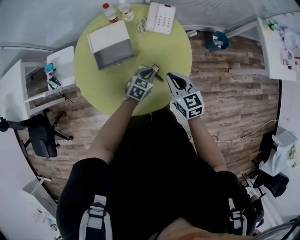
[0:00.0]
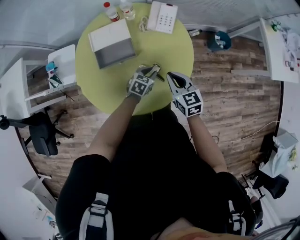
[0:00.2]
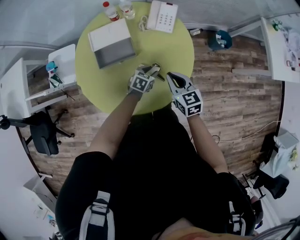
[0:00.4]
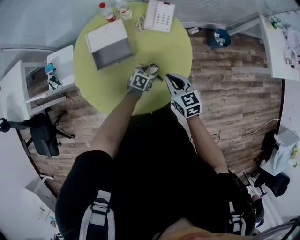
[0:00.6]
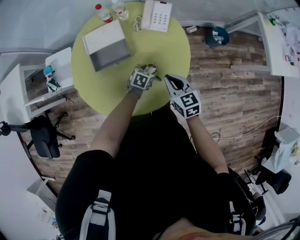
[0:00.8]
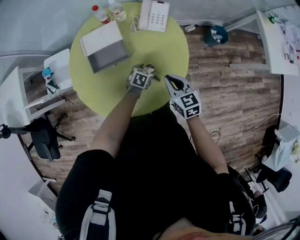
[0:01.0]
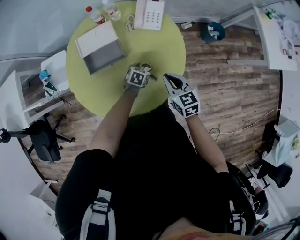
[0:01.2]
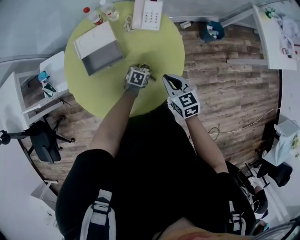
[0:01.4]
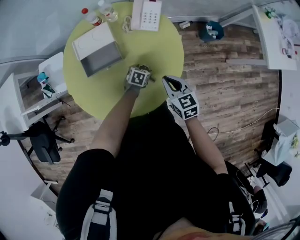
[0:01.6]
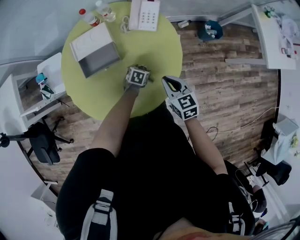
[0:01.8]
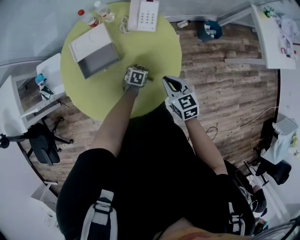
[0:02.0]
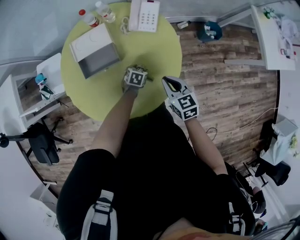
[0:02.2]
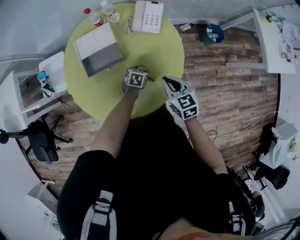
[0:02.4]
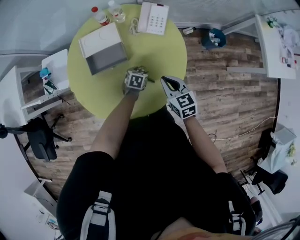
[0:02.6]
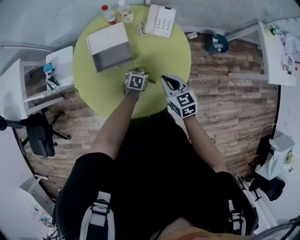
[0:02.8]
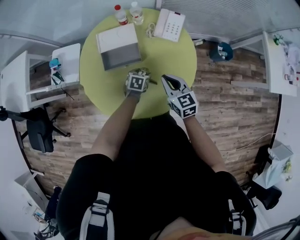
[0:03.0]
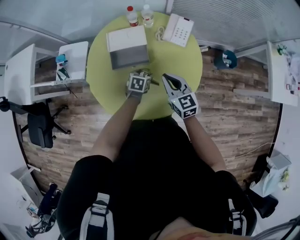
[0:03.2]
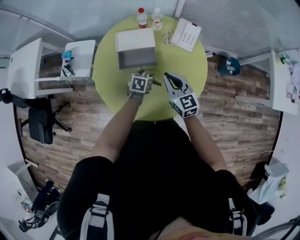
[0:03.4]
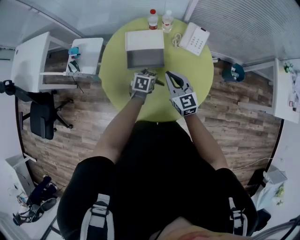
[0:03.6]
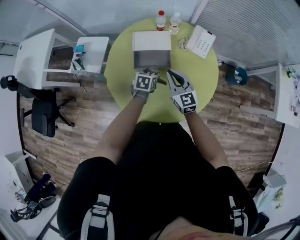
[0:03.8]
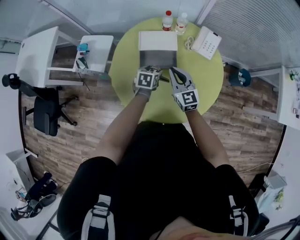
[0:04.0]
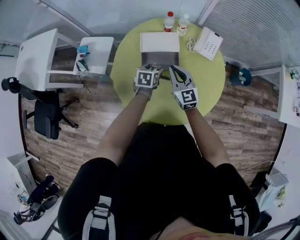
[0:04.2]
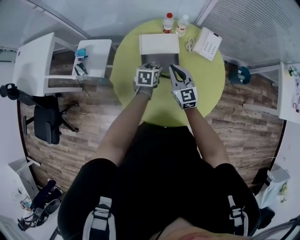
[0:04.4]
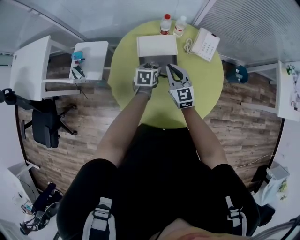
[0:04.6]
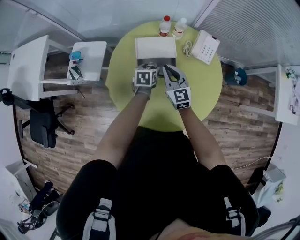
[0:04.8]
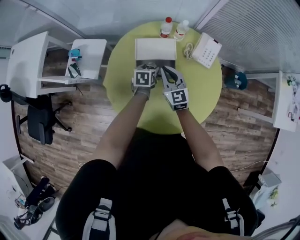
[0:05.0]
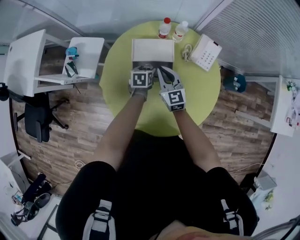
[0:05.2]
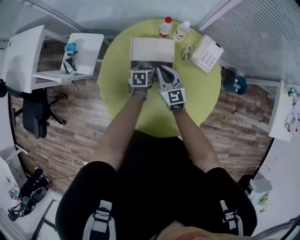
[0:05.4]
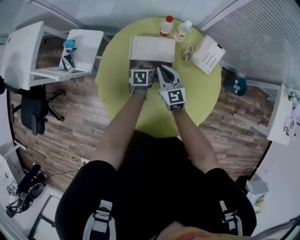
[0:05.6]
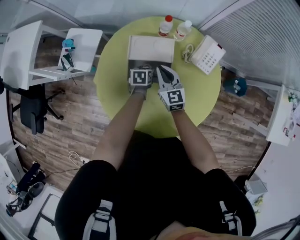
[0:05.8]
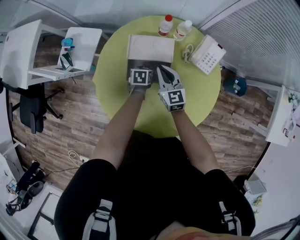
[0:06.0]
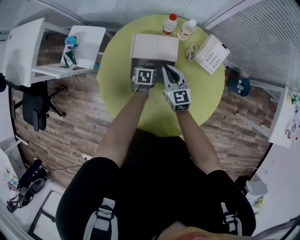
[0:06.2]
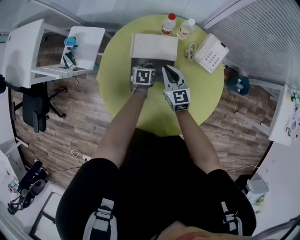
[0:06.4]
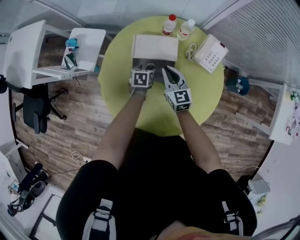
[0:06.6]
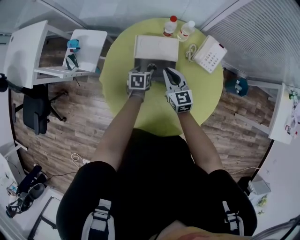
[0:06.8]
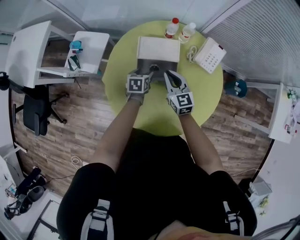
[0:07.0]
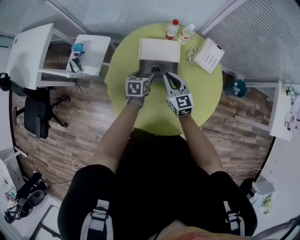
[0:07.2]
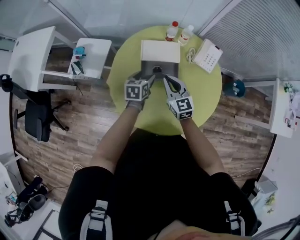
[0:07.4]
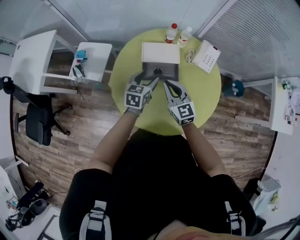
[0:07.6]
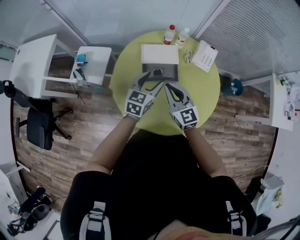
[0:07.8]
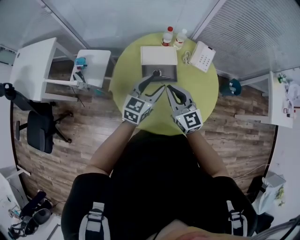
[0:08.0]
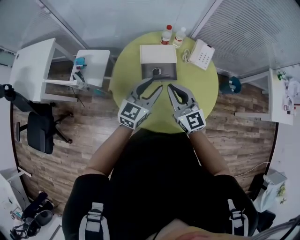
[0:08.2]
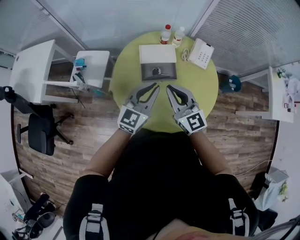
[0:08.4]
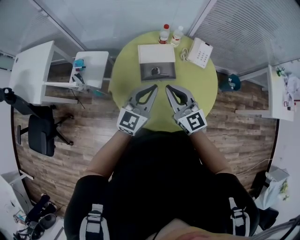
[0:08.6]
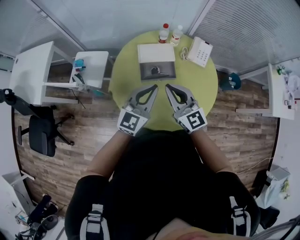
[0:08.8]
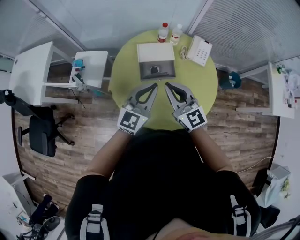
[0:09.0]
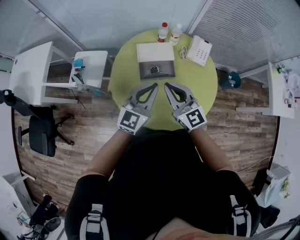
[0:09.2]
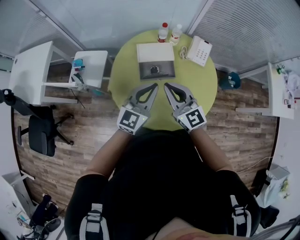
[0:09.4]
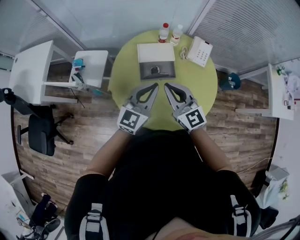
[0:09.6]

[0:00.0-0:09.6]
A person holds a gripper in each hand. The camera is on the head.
0:00.0 to 0:01.6: The left gripper heads downward, covering about 15 cm, rotates about 20 degrees, and opens up. The right gripper is displaced downward by approximately 5 cm.
0:01.6 to 0:03.2: Both grippers travel together to the left and upward, roughly 15 cm.
0:03.2 to 0:04.8: The two grippers go approximately 20 cm to the left and forward.
0:04.8 to 0:06.4: The right gripper is displaced downward and forward by about 10 cm; the left gripper is displaced downward by roughly 10 cm.
0:06.4 to 0:08.0: Both grippers move upward and backward, some 30 cm. The left gripper tips its fingers upward by approximately 40 degrees.
0:08.0 to 0:09.6: The left gripper shifts roughly 5 cm upward, and closes its fingers.

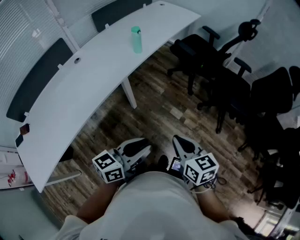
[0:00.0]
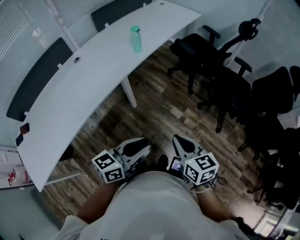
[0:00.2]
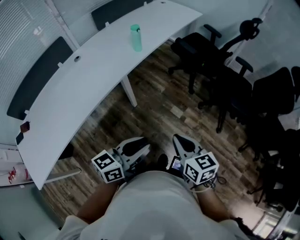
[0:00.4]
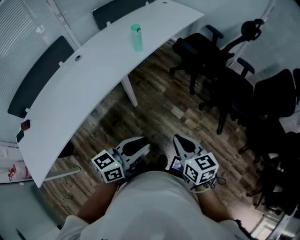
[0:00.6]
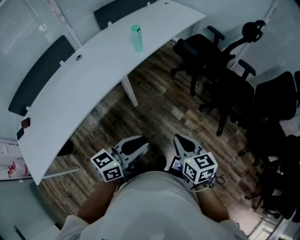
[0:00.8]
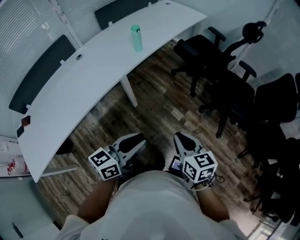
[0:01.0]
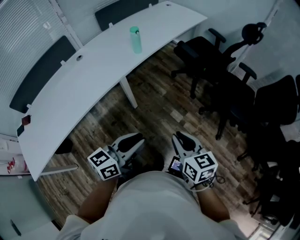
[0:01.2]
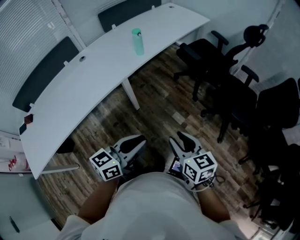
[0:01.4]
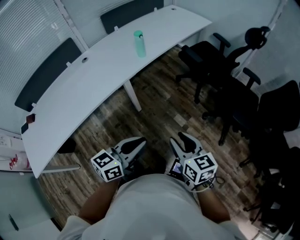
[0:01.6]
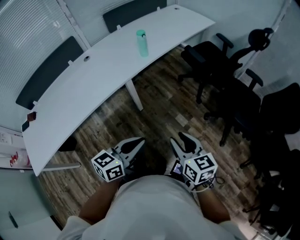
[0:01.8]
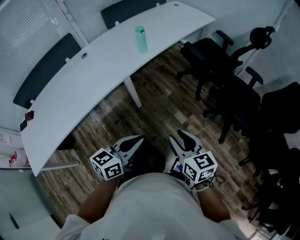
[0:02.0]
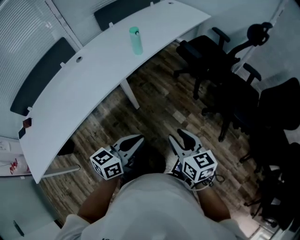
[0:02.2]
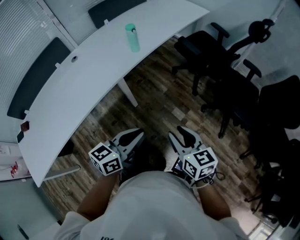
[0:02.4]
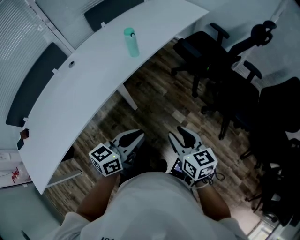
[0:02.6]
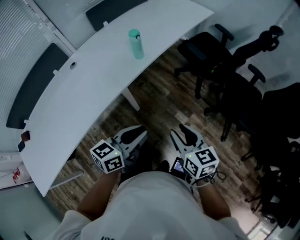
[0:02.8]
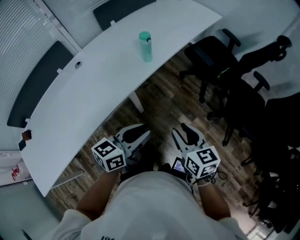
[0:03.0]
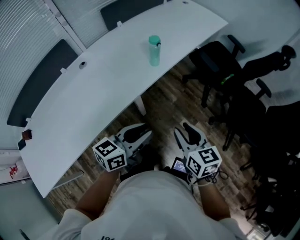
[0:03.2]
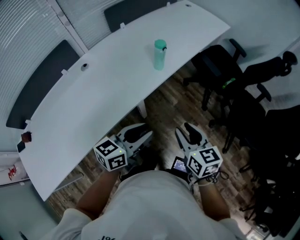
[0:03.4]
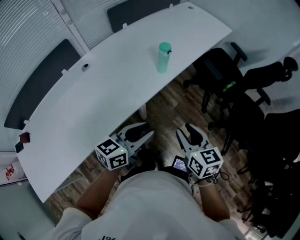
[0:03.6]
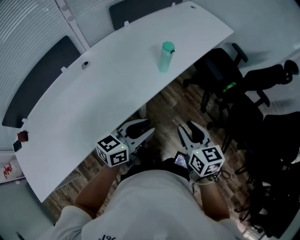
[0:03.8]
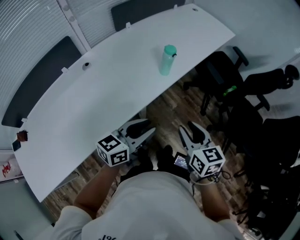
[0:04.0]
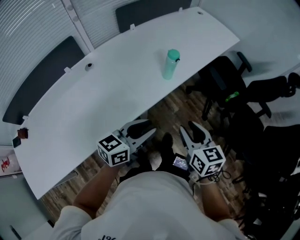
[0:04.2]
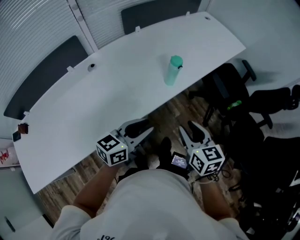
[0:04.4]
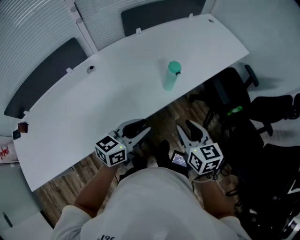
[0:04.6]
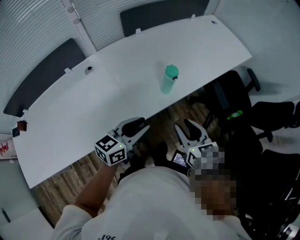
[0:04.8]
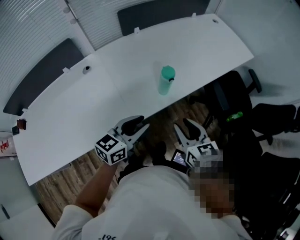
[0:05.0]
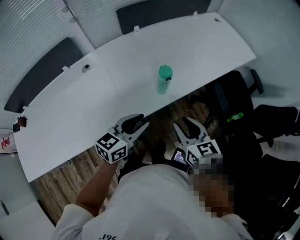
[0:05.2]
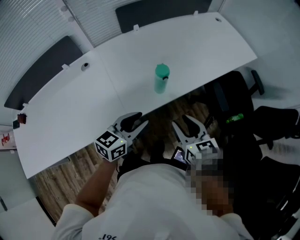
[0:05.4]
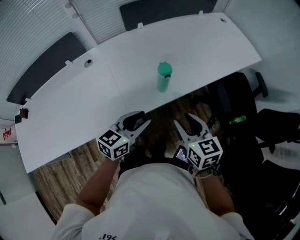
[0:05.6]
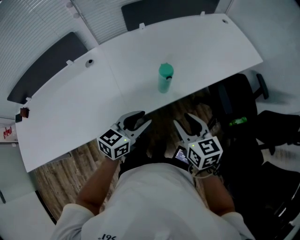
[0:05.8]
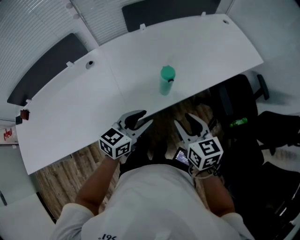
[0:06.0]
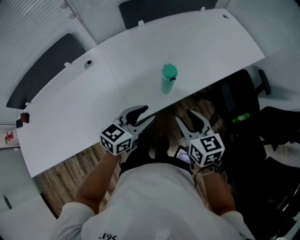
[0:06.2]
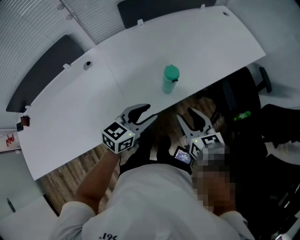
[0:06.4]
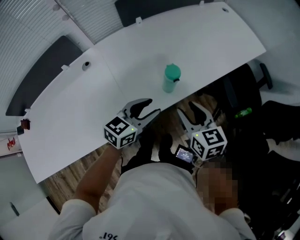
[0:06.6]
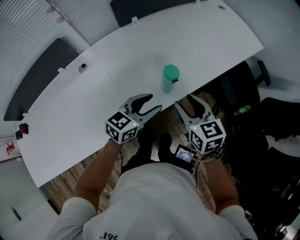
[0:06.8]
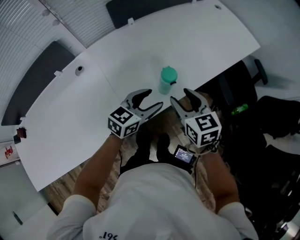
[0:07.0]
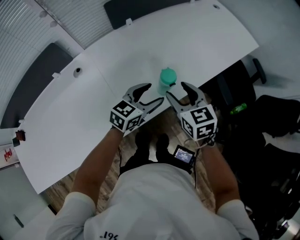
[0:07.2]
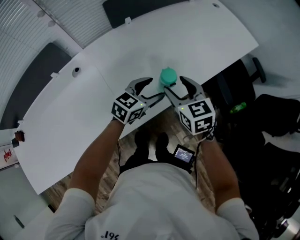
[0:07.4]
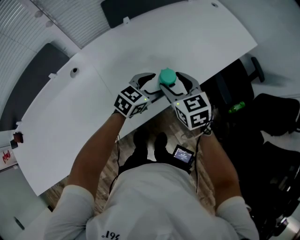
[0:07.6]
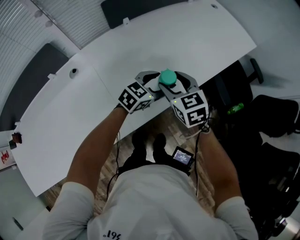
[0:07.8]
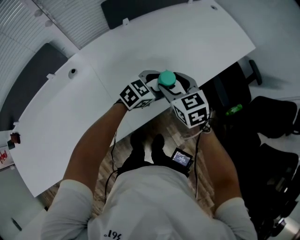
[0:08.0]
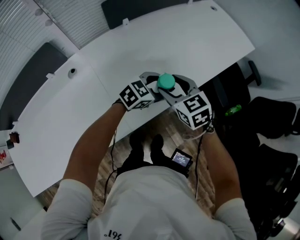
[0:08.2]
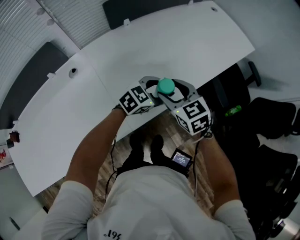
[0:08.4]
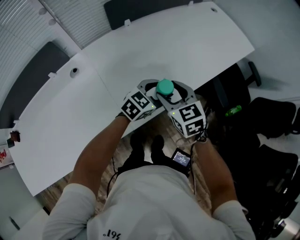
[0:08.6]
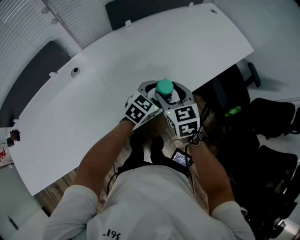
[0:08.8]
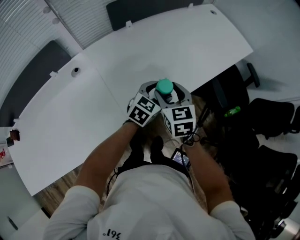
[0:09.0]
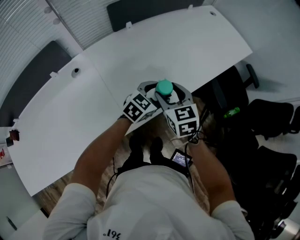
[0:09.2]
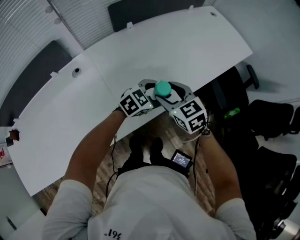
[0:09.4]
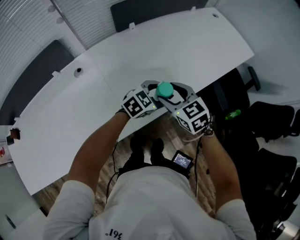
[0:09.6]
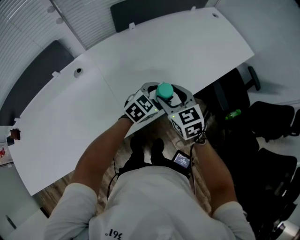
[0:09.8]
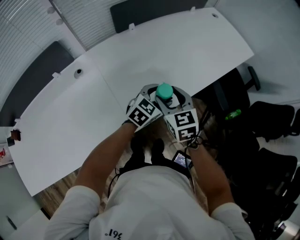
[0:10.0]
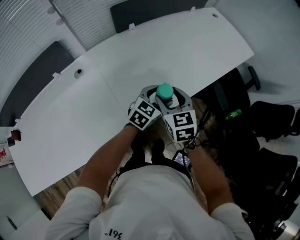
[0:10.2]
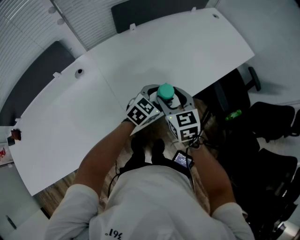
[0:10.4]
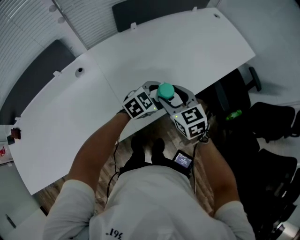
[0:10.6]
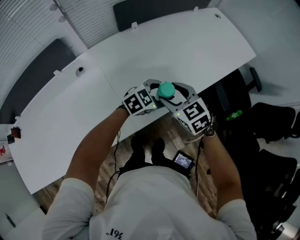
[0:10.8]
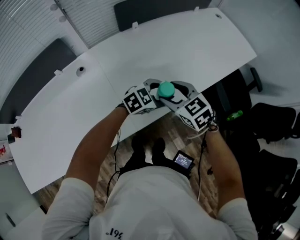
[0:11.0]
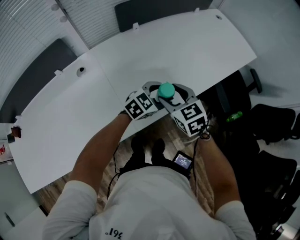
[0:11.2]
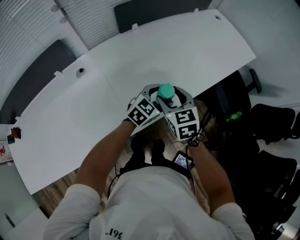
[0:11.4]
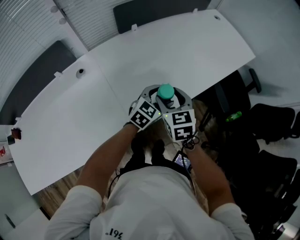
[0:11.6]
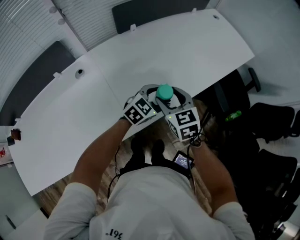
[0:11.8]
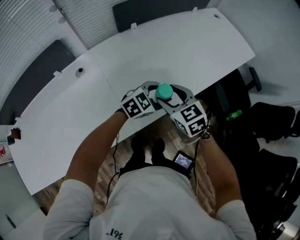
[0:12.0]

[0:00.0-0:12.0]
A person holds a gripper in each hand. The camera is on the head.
0:00.0 to 0:01.6: The grippers both shift to the right by some 5 cm. The right gripper opens up.
0:01.6 to 0:03.0: Both grippers move forward and to the left, about 20 cm.
0:03.0 to 0:04.4: The grippers both shift forward and to the left by about 15 cm.
0:04.4 to 0:06.0: The left gripper moves forward and to the right, about 15 cm; the right gripper shifts some 10 cm forward.
0:06.0 to 0:07.6: The left gripper travels forward by about 15 cm, turns by approximately 20 degrees, and opens its fingers. The right gripper moves forward and to the left, approximately 15 cm.
0:07.6 to 0:09.0: There are only small adjustments of the grippers.

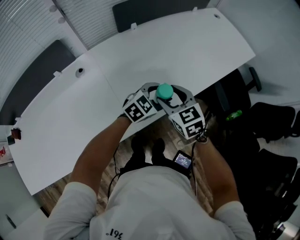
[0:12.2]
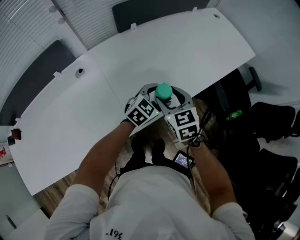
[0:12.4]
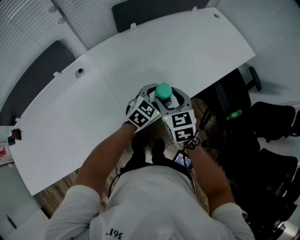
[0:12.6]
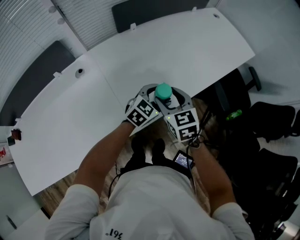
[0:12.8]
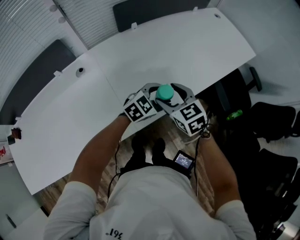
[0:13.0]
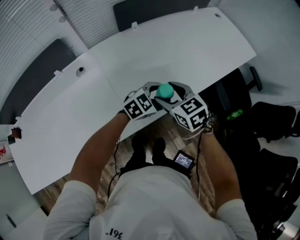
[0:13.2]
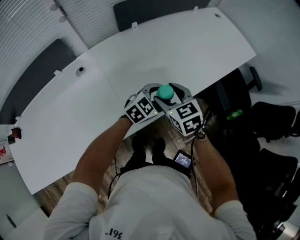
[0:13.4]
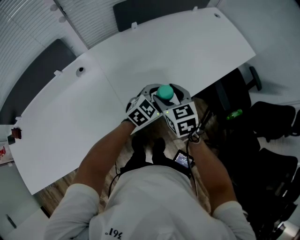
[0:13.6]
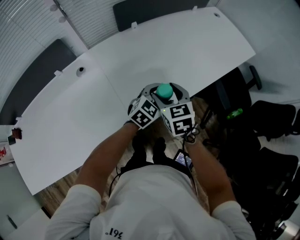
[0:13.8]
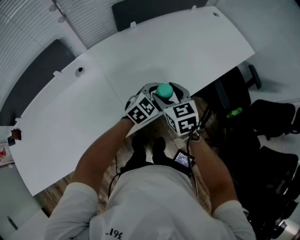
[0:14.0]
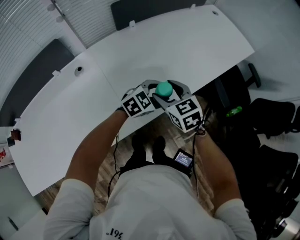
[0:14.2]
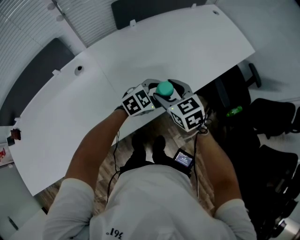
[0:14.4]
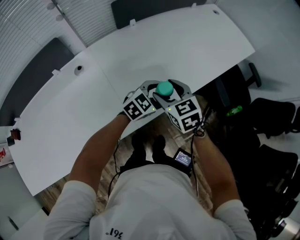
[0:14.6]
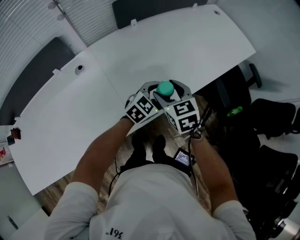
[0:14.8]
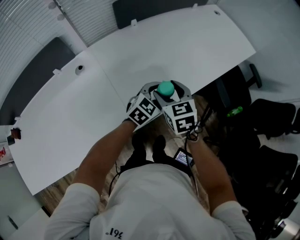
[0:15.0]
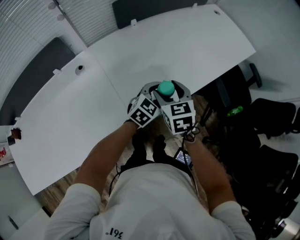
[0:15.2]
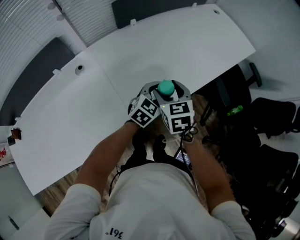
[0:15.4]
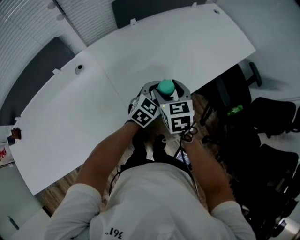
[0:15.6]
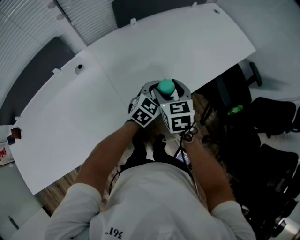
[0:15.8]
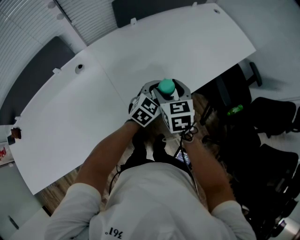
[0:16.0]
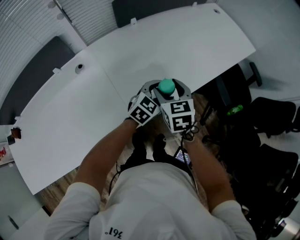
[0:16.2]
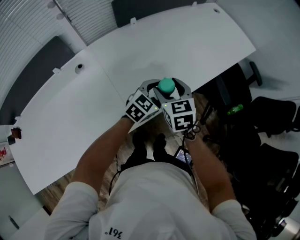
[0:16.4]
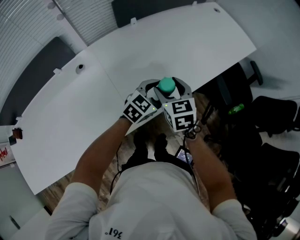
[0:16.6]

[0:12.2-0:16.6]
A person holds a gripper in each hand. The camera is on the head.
0:12.2 to 0:16.6: The grippers stay close to where they were, moving slightly.
